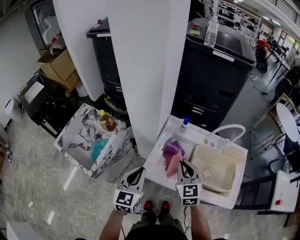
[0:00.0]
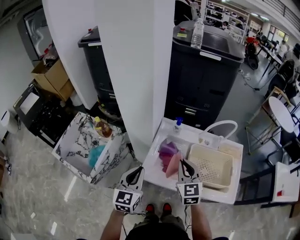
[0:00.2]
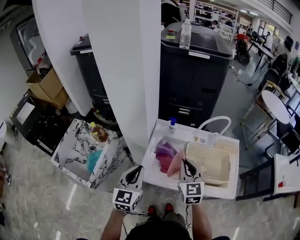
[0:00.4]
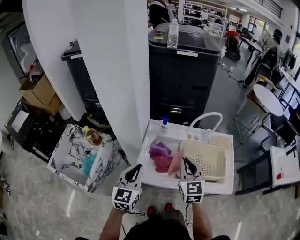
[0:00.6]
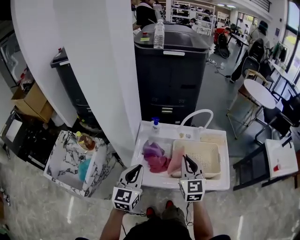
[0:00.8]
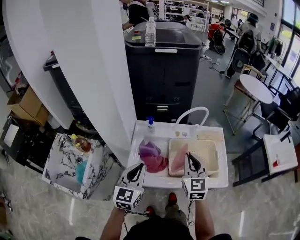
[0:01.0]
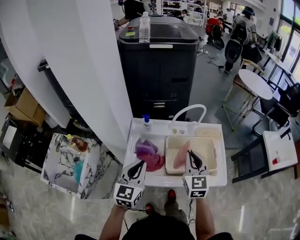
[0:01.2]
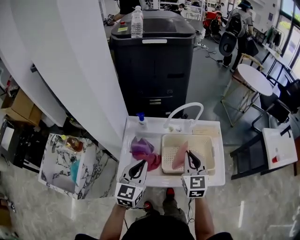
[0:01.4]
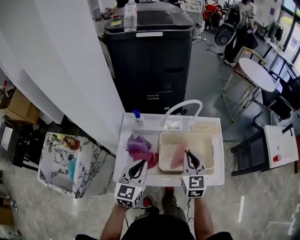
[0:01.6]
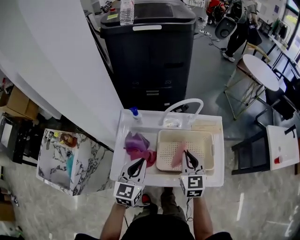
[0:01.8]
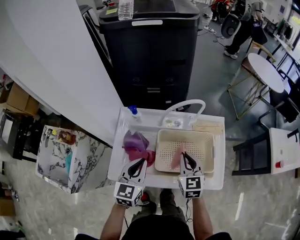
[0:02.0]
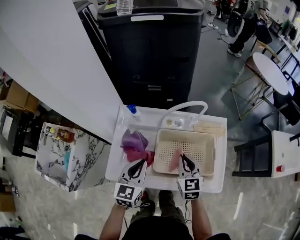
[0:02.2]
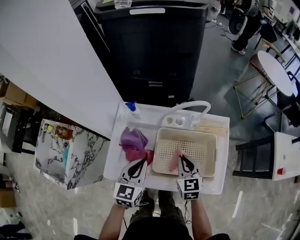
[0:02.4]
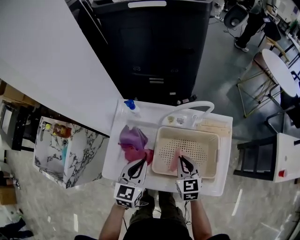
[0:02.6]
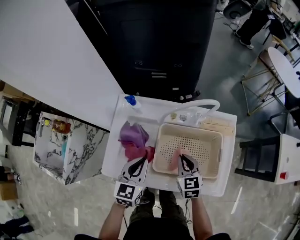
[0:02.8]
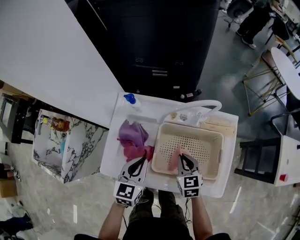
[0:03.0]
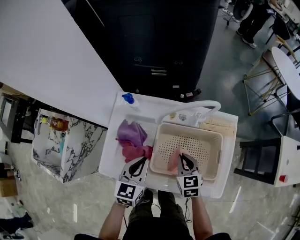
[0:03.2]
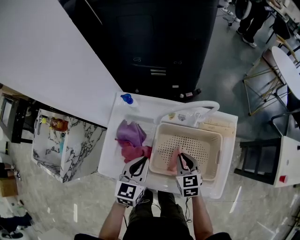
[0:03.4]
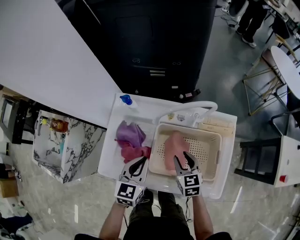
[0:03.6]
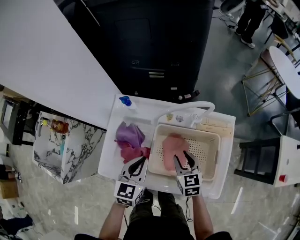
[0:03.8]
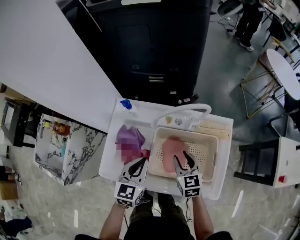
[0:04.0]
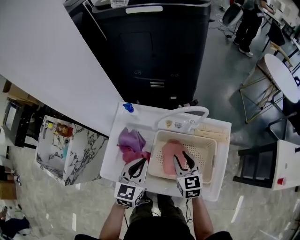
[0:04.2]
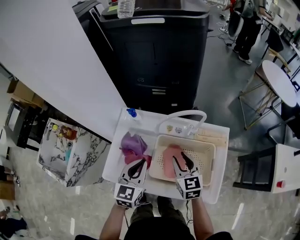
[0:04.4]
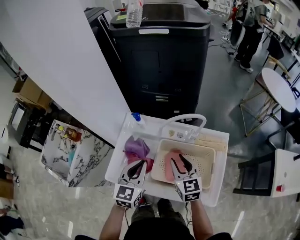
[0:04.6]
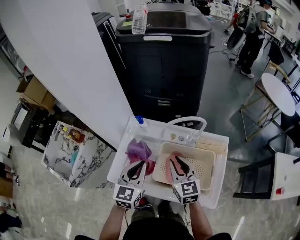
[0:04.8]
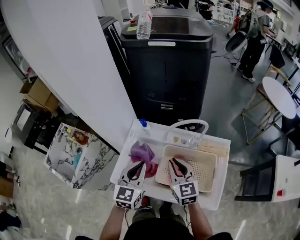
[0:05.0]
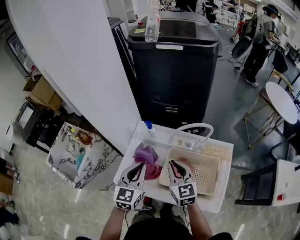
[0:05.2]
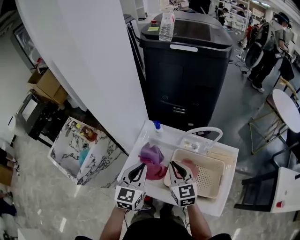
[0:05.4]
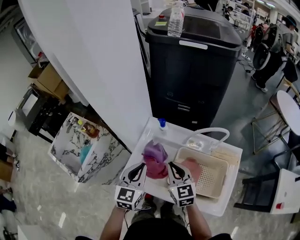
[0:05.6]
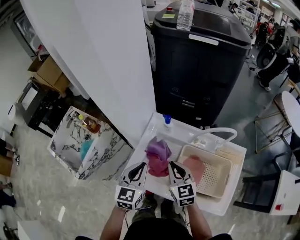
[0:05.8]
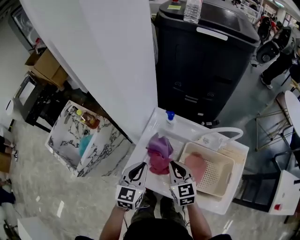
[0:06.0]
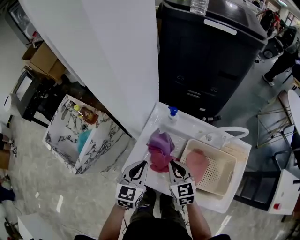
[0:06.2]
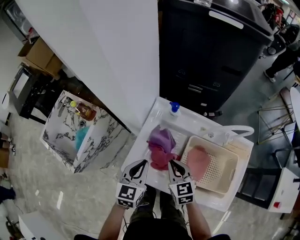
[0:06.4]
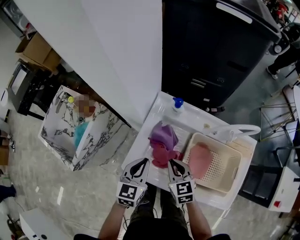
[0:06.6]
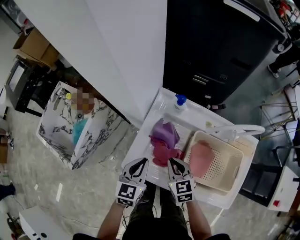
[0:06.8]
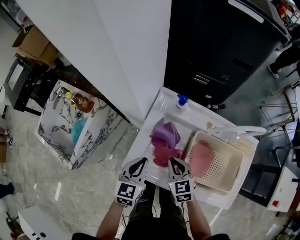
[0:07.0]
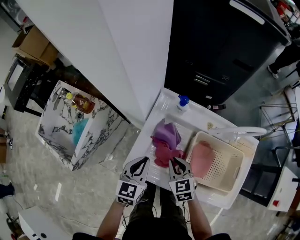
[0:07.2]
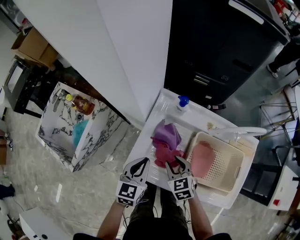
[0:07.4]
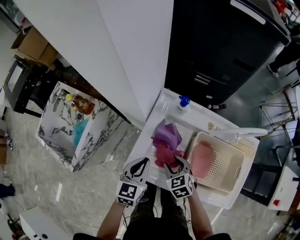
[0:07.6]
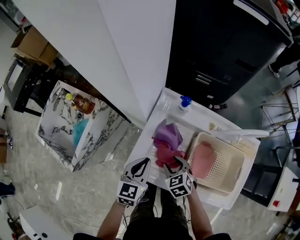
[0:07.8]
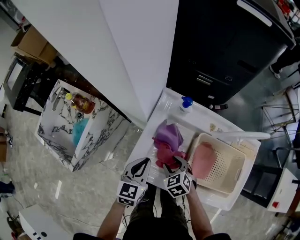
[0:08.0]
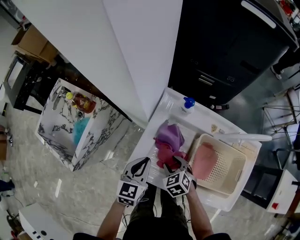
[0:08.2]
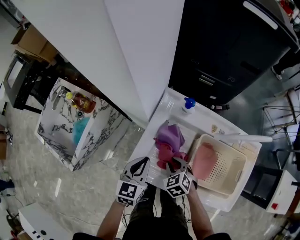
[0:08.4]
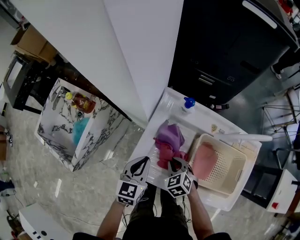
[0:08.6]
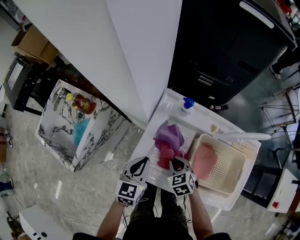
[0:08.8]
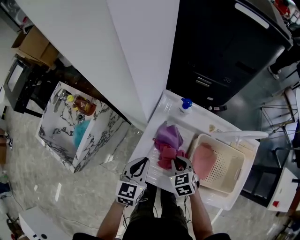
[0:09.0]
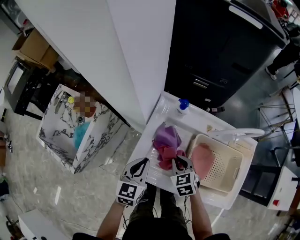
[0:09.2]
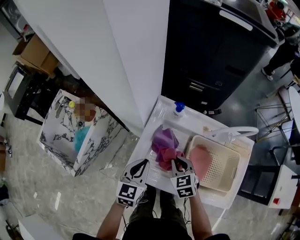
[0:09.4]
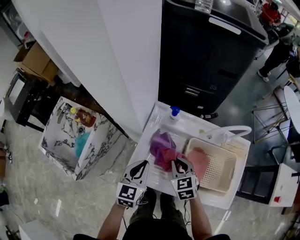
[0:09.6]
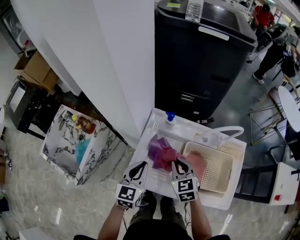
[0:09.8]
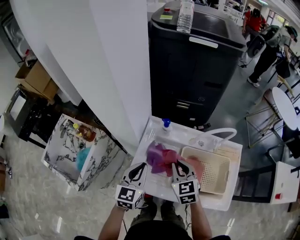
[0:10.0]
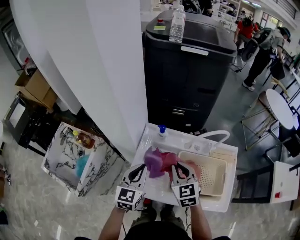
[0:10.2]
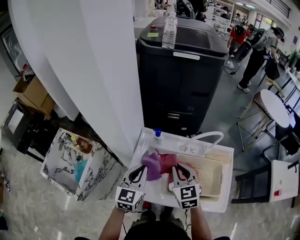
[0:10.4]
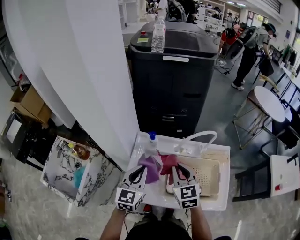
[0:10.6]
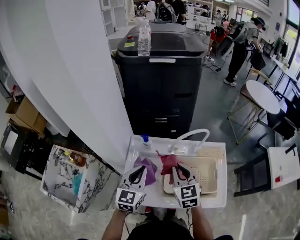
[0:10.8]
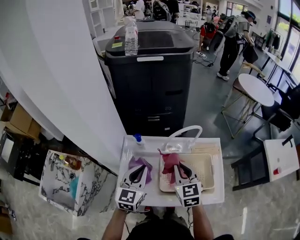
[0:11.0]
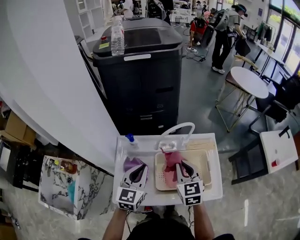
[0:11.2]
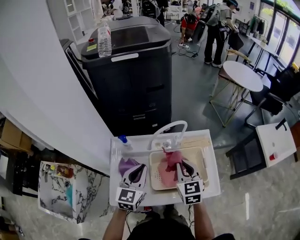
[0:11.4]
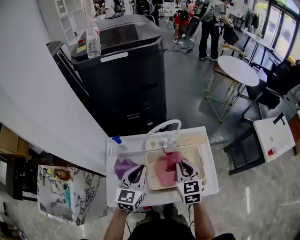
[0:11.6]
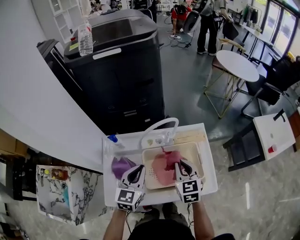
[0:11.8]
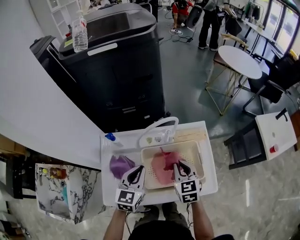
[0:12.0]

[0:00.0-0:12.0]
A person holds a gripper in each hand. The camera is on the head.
0:00.0 to 0:01.6: The right gripper travels to the right by approximately 20 cm, and swivels some 20 degrees. The left gripper travels to the right and forward by roughly 20 cm, and swivels approximately 20 degrees.
0:01.6 to 0:03.0: The right gripper travels downward by some 20 cm, and changes its angle by about 30 degrees. Meanwhile the left gripper moves downward and forward, about 10 cm.
0:03.0 to 0:04.4: Both grippers travel together upward, about 10 cm. The right gripper opens its fingers.
0:04.4 to 0:06.0: Both grippers move to the left, approximately 15 cm. The right gripper closes.
0:06.0 to 0:07.6: The right gripper goes about 15 cm downward, changes its angle by roughly 30 degrees, and opens up. The left gripper is displaced downward by about 10 cm.
0:07.6 to 0:09.0: The right gripper closes its fingers.
0:09.0 to 0:10.4: The right gripper shifts about 25 cm upward, and turns by approximately 30 degrees. Meanwhile the left gripper goes about 15 cm upward and to the right.
0:10.4 to 0:12.0: The left gripper heads to the right, covering about 15 cm; the right gripper heads to the right and downward, covering some 20 cm, and rotates approximately 20 degrees.

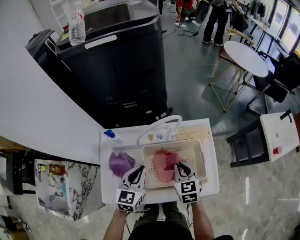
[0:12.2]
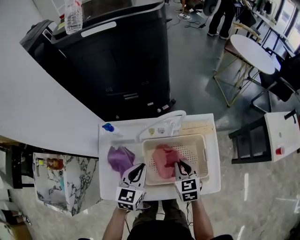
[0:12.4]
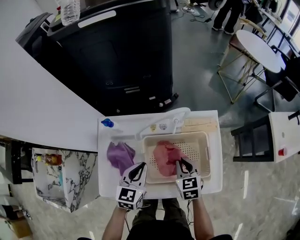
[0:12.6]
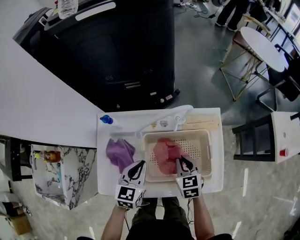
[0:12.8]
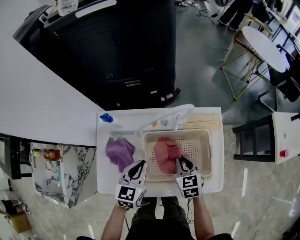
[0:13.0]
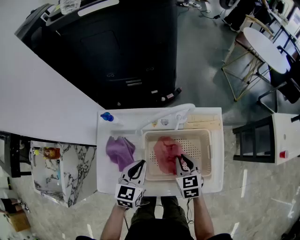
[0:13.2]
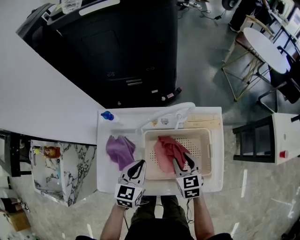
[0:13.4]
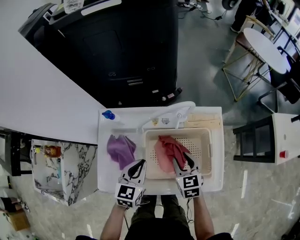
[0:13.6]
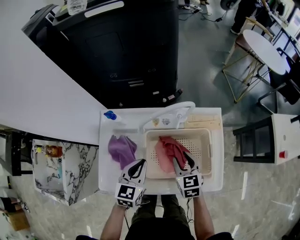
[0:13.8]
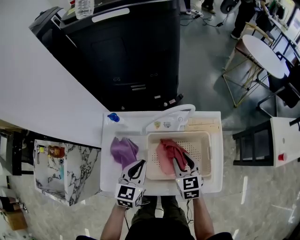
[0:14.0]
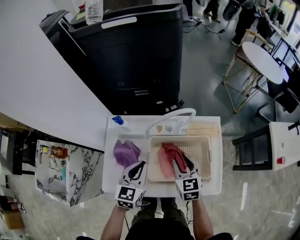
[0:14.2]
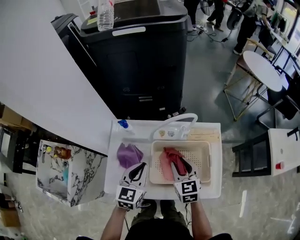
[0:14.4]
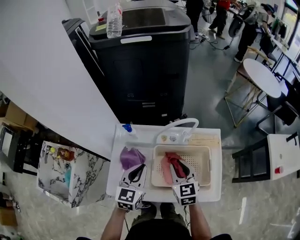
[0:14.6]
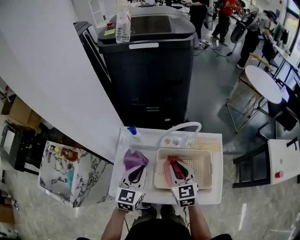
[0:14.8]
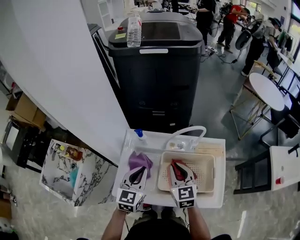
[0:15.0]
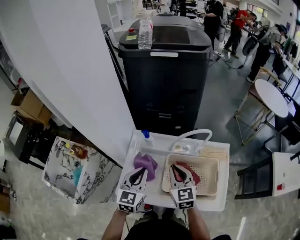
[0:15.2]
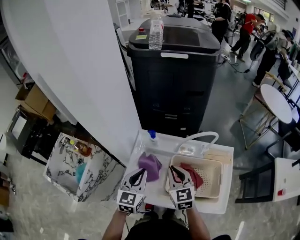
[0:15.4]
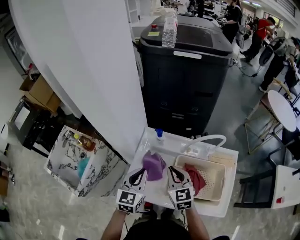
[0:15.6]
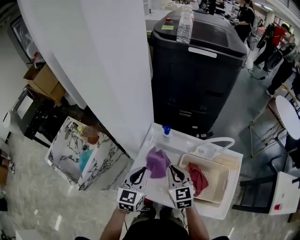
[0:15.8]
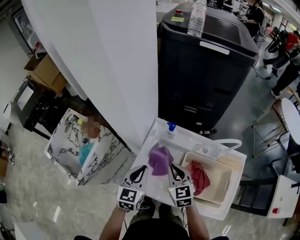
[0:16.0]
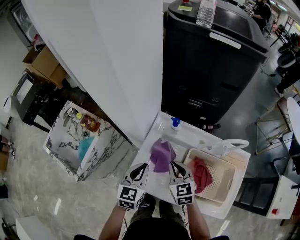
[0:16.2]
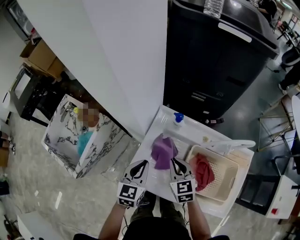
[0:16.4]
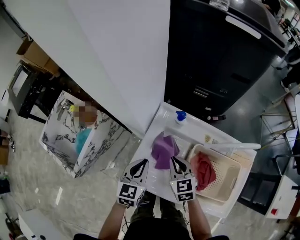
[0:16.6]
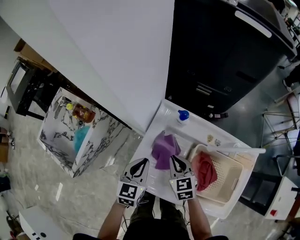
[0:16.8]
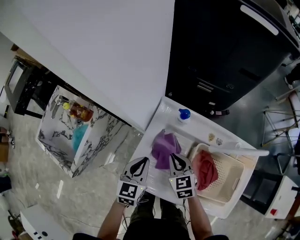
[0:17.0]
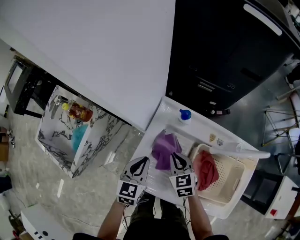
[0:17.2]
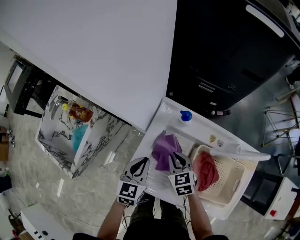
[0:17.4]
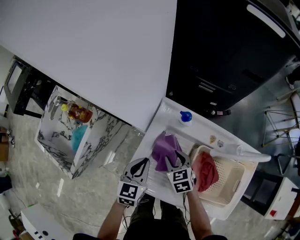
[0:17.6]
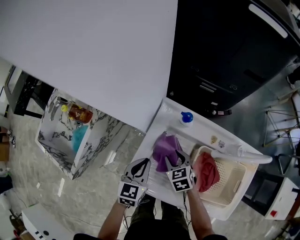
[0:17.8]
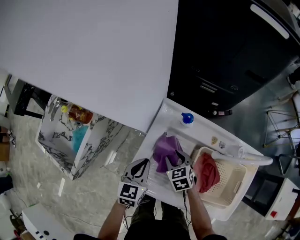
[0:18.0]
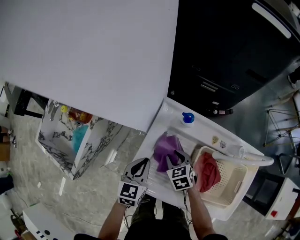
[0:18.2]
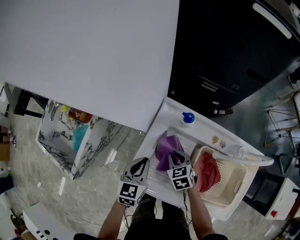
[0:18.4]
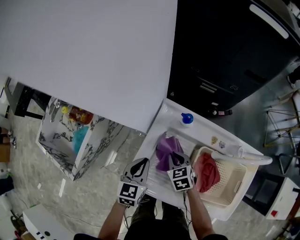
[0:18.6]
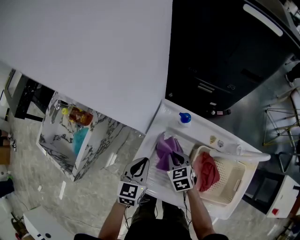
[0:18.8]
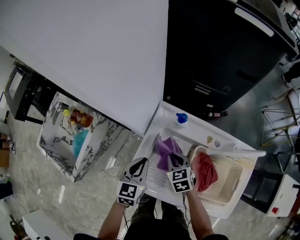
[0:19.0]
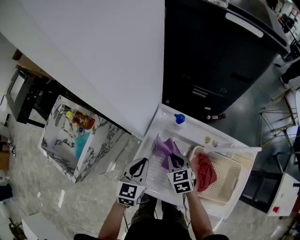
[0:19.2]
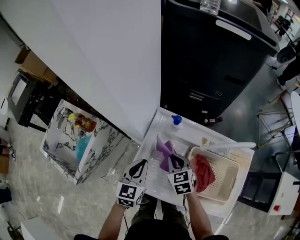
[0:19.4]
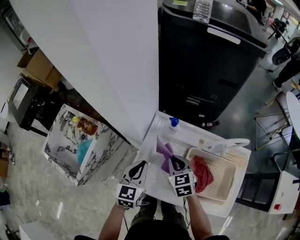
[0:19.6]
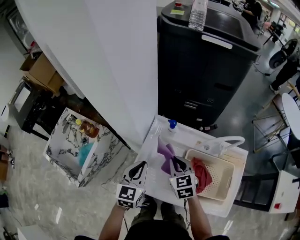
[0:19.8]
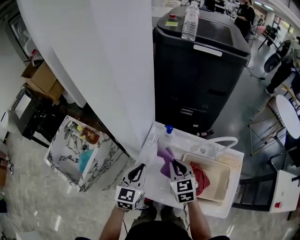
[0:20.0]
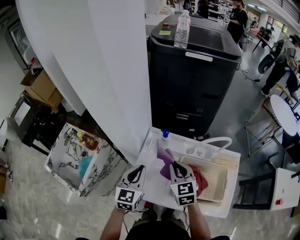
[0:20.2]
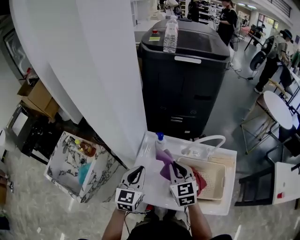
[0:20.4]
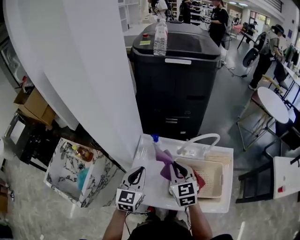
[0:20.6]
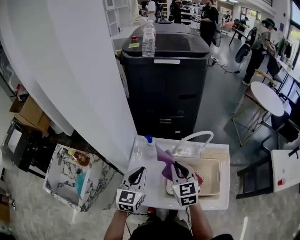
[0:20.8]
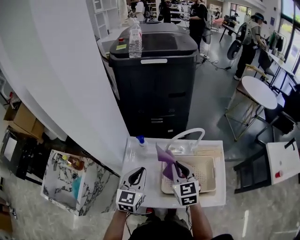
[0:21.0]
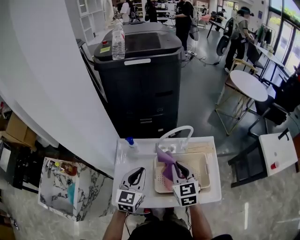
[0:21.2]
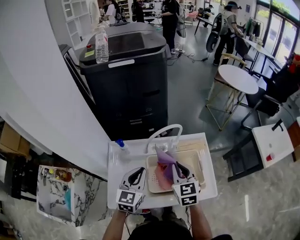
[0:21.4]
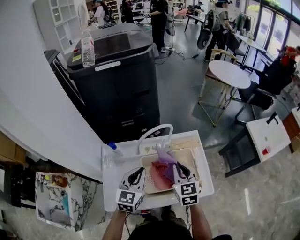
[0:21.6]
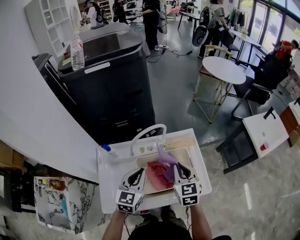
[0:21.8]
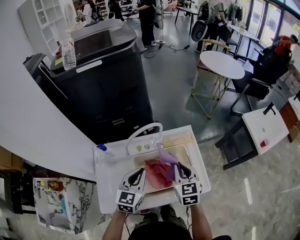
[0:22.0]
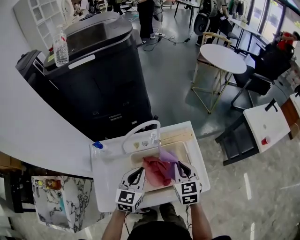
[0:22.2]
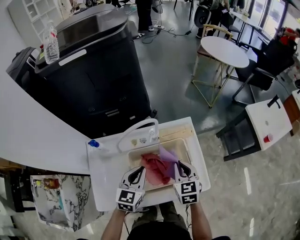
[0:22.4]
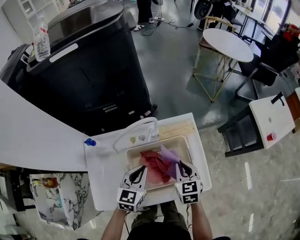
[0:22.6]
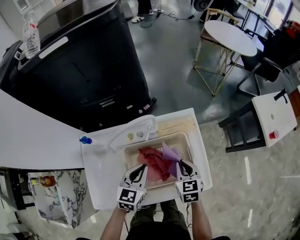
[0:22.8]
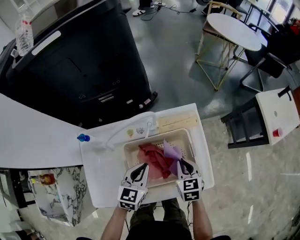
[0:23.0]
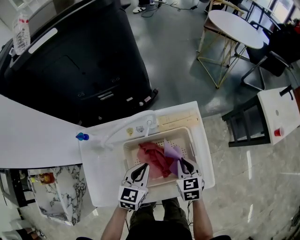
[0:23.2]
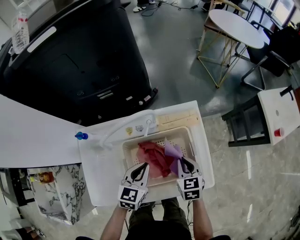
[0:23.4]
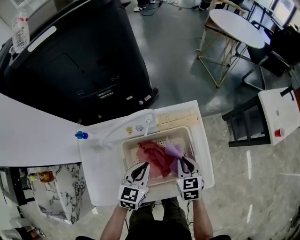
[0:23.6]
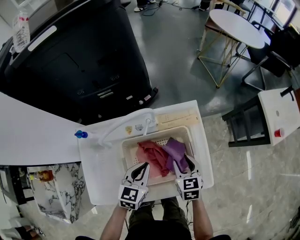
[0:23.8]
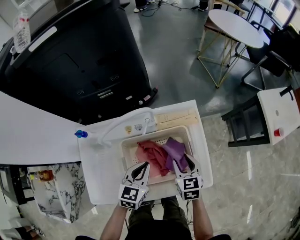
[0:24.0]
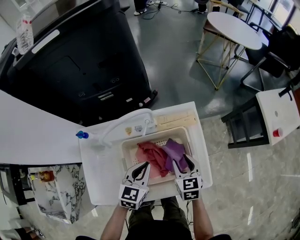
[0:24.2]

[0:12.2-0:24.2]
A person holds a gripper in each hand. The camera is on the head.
0:12.2 to 0:13.8: The right gripper heads downward, covering some 5 cm, and opens its fingers. The left gripper changes place by some 5 cm.
0:13.8 to 0:15.2: Both grippers travel together upward and to the left, some 15 cm. The right gripper rotates some 20 degrees, and closes.
0:15.2 to 0:16.6: Both grippers travel together downward and to the left, some 15 cm. The right gripper turns by roughly 20 degrees.
0:16.6 to 0:18.2: The left gripper heads downward, covering approximately 5 cm. The right gripper heads downward, covering some 10 cm, changes its angle by approximately 20 degrees, and opens.
0:18.2 to 0:19.8: The two grippers go approximately 15 cm upward. The right gripper rotates some 20 degrees, and closes its fingers.
0:19.8 to 0:21.2: Both grippers move to the right and upward, some 20 cm. The left gripper changes its angle by about 20 degrees. The right gripper swivels roughly 30 degrees.
0:21.2 to 0:22.6: Both grippers travel together to the right and downward, approximately 20 cm. The right gripper turns by roughly 20 degrees.
0:22.6 to 0:24.2: The left gripper shifts by some 5 cm; the right gripper heads downward, covering some 5 cm, and opens its fingers.
